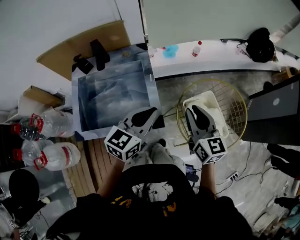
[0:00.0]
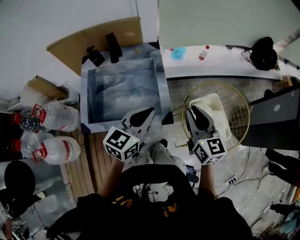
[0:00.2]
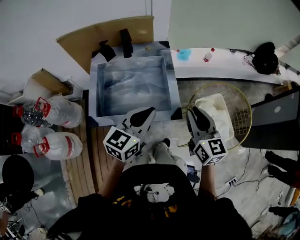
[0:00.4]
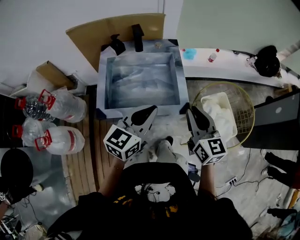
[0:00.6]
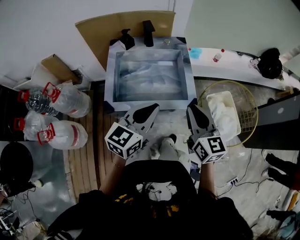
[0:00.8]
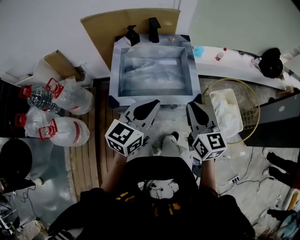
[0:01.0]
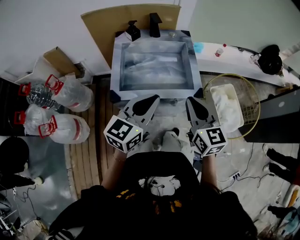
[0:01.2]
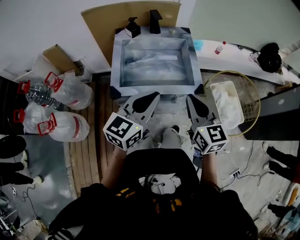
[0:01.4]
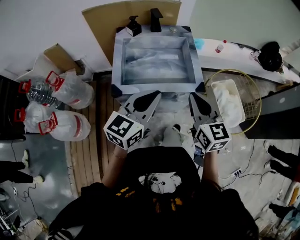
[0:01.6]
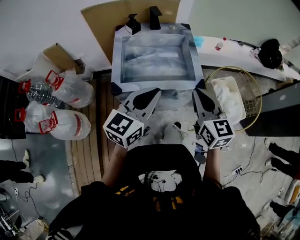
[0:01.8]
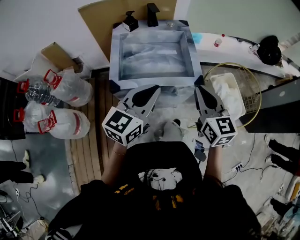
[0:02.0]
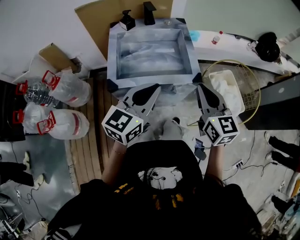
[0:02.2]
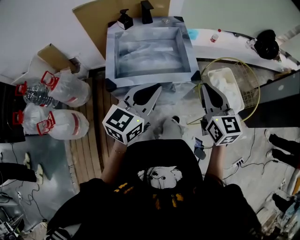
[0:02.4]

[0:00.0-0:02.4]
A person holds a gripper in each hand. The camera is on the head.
0.0 to 1.2 s: The two grippers go about 25 cm to the left and backward.
1.2 to 2.4 s: The right gripper goes roughly 5 cm to the right.

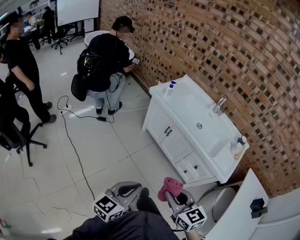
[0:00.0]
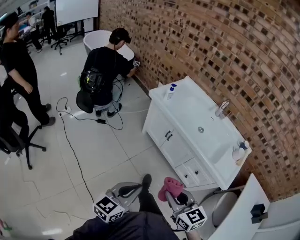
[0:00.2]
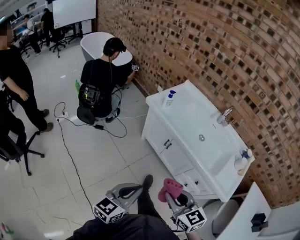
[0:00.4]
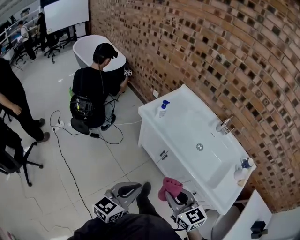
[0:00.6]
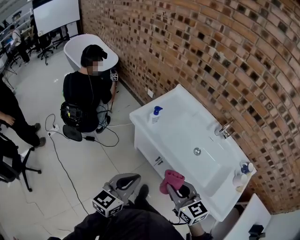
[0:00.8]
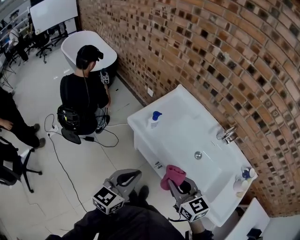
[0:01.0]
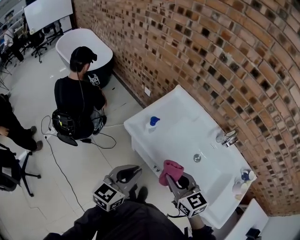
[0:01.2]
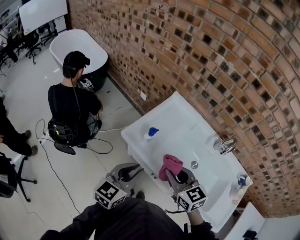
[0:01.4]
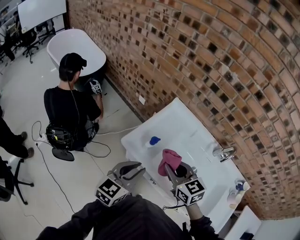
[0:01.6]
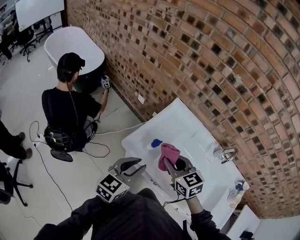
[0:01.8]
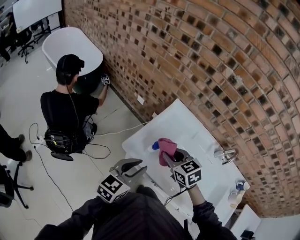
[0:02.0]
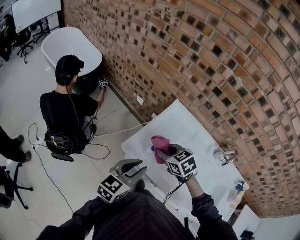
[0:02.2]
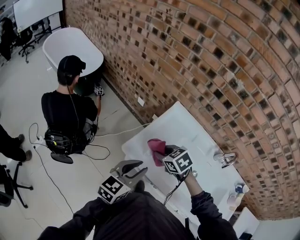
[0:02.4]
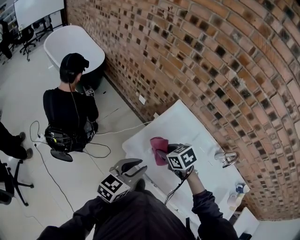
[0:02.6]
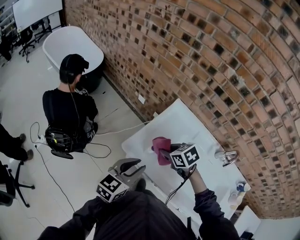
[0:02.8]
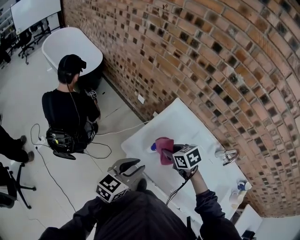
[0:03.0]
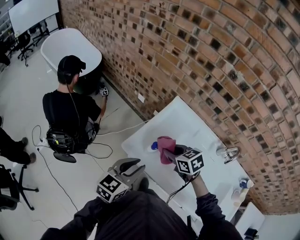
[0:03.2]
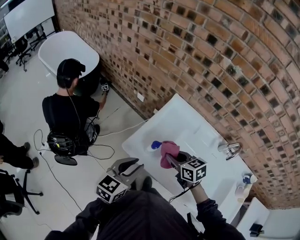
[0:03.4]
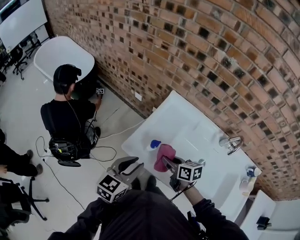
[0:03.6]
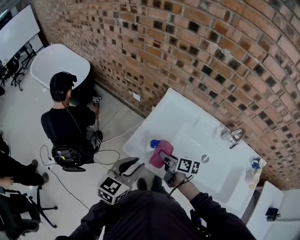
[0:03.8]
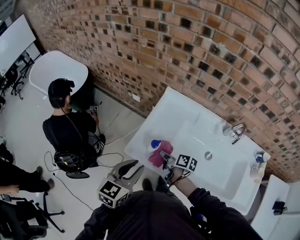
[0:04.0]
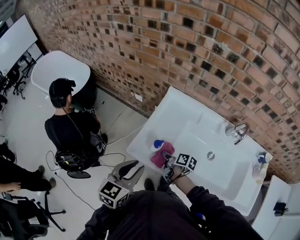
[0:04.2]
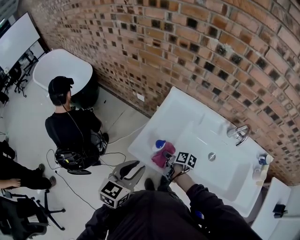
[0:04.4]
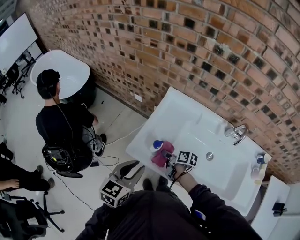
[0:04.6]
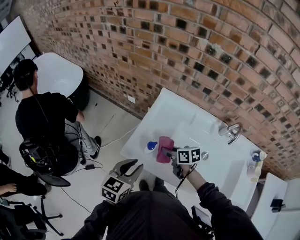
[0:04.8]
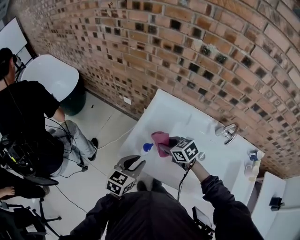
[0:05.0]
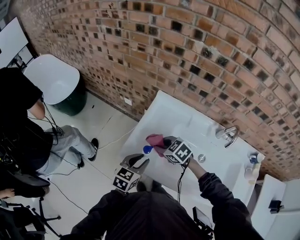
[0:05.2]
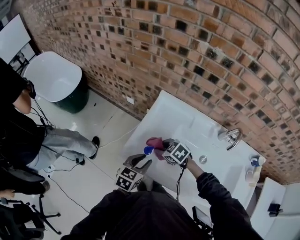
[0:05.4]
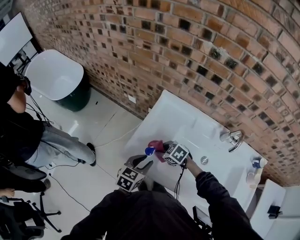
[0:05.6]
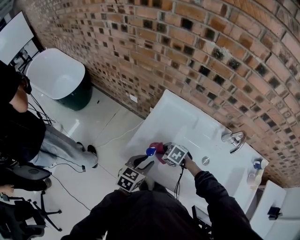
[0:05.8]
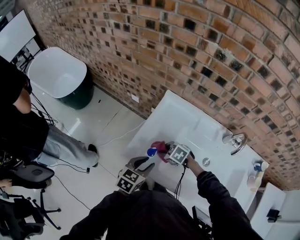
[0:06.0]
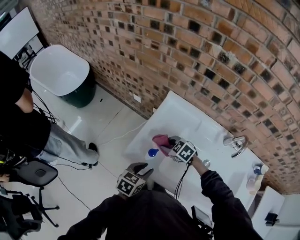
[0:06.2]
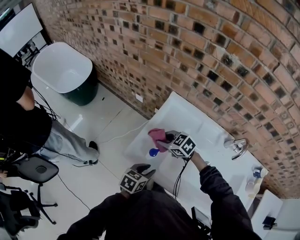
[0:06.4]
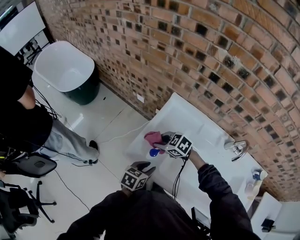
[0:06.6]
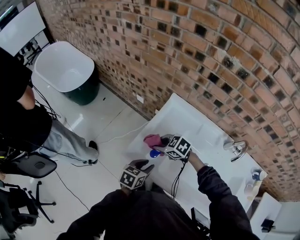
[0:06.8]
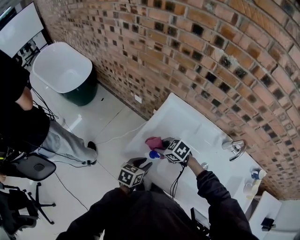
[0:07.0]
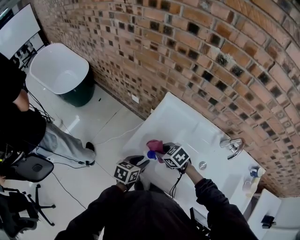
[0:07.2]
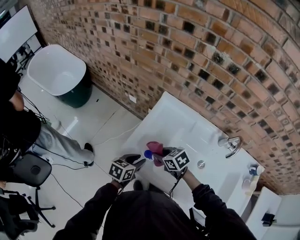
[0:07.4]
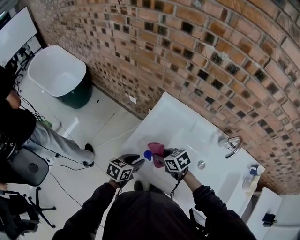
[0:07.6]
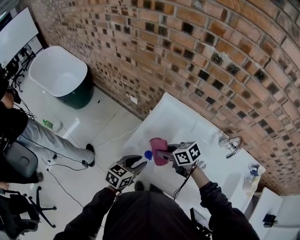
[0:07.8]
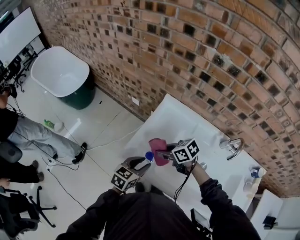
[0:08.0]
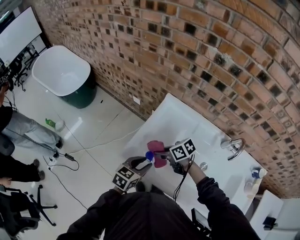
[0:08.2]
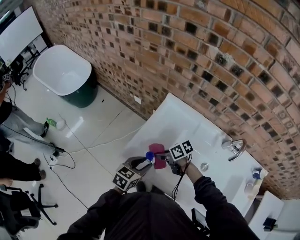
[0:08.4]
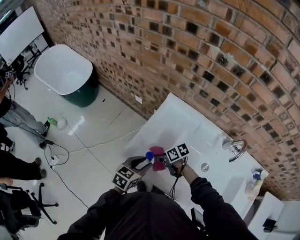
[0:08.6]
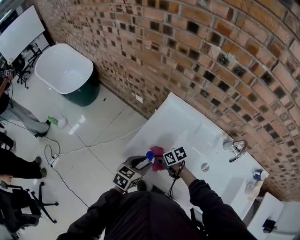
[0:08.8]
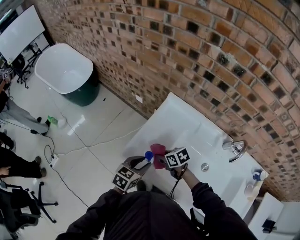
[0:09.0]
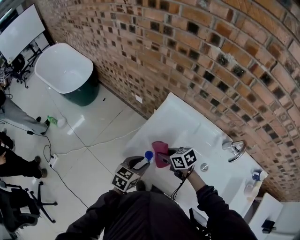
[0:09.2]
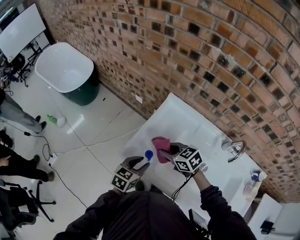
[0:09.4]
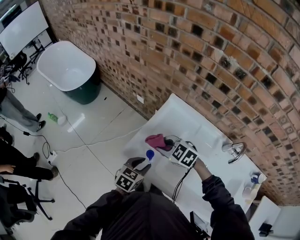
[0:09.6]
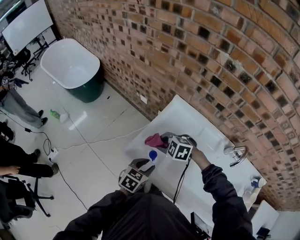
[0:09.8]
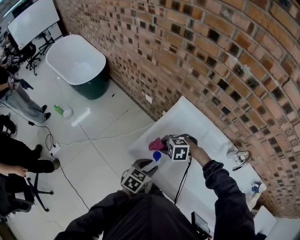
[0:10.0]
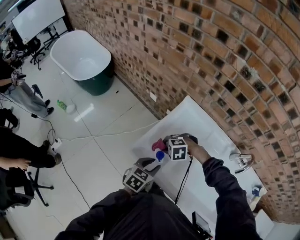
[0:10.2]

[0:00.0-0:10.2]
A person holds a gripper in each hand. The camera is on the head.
0.0 to 1.4 s: Both grippers are carried forward, approximately 60 cm.
1.4 to 3.0 s: The right gripper travels forward and downward by approximately 20 cm, and changes its angle by about 30 degrees, while the left gripper travels forward by roughly 10 cm.
3.0 to 4.4 s: The right gripper goes approximately 15 cm downward, and rolls clockwise, seen from behind, by some 70 degrees.
4.4 to 5.8 s: The left gripper heads downward, to the right and forward, covering approximately 15 cm; the right gripper moves approximately 15 cm upward and comes back, and rotates around the line of its fingers by about 80 degrees, counterclockwise from behind.
5.8 to 7.2 s: The right gripper travels upward by roughly 5 cm.
7.2 to 8.8 s: The right gripper goes roughly 10 cm downward, and rotates roughly 30 degrees.
8.8 to 10.2 s: The right gripper goes upward and returns, roughly 15 cm each way, and rotates around the line of its fingers by roughly 80 degrees, counterclockwise from behind.

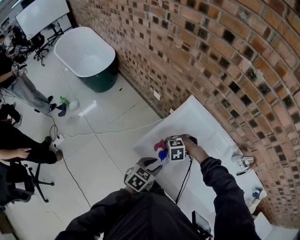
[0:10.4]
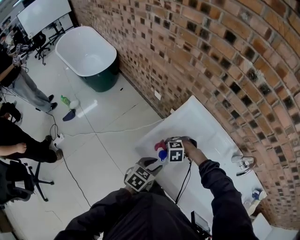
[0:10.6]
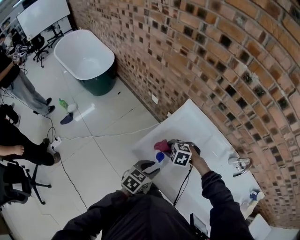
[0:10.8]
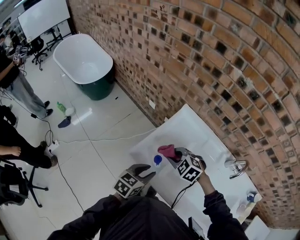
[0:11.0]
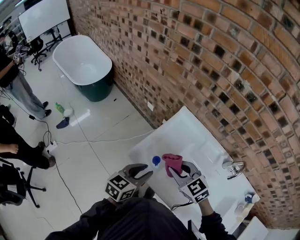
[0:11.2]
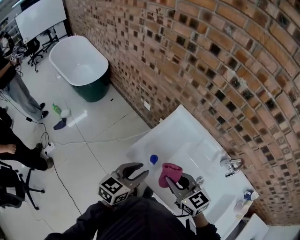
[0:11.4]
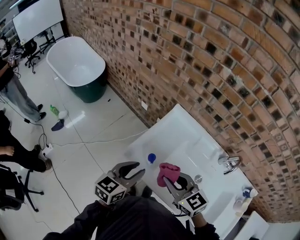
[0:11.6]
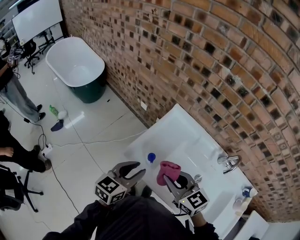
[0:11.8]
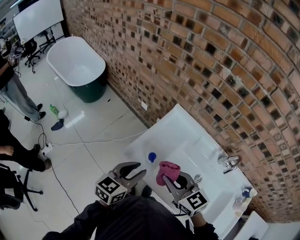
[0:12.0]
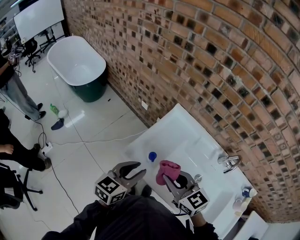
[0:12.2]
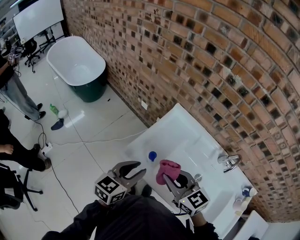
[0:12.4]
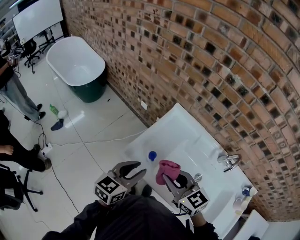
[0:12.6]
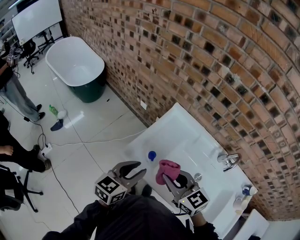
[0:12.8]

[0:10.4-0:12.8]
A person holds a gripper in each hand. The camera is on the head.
10.4 to 11.6 s: The right gripper heads upward, covering roughly 25 cm, and points its fingers approximately 50 degrees further upward. The left gripper travels upward by about 15 cm, and rotates roughly 20 degrees.
11.6 to 12.8 s: The grippers move only a little.

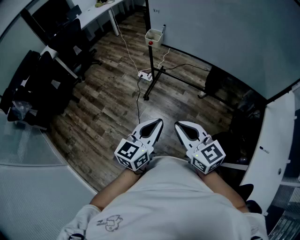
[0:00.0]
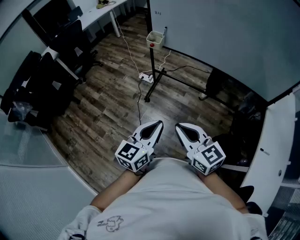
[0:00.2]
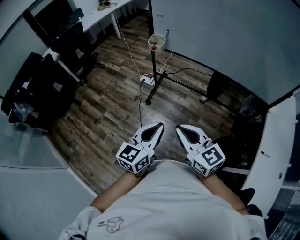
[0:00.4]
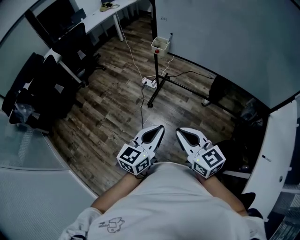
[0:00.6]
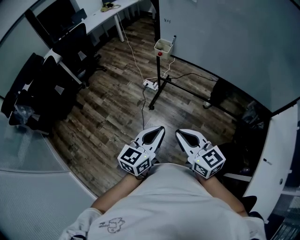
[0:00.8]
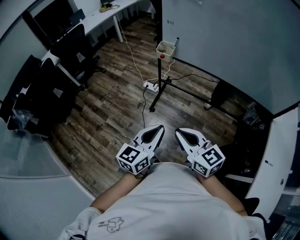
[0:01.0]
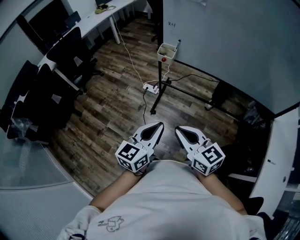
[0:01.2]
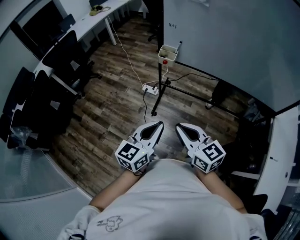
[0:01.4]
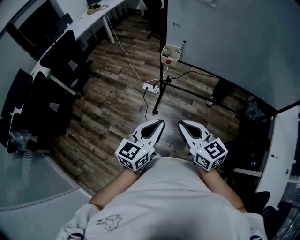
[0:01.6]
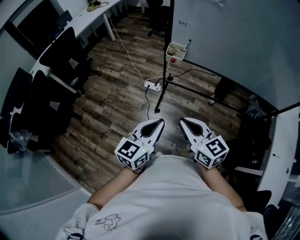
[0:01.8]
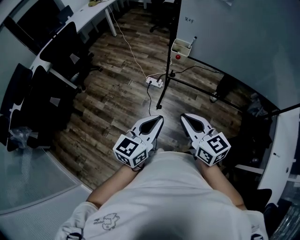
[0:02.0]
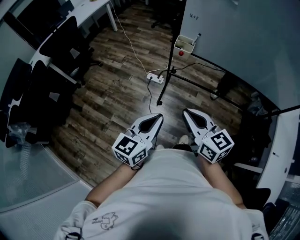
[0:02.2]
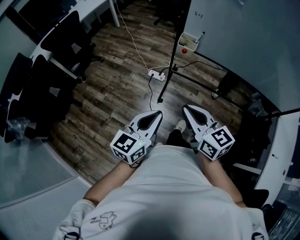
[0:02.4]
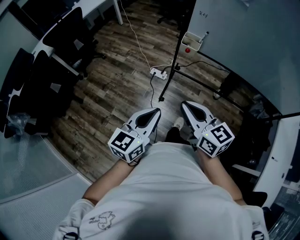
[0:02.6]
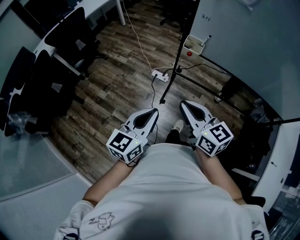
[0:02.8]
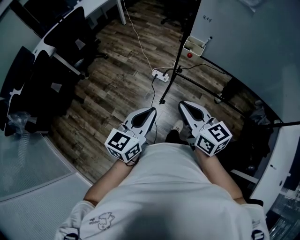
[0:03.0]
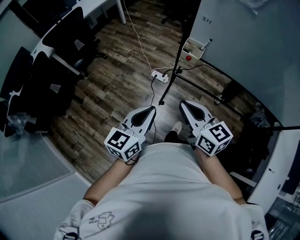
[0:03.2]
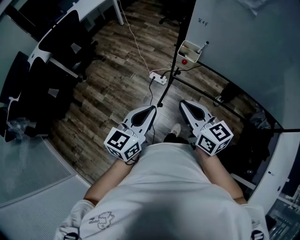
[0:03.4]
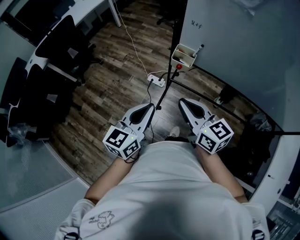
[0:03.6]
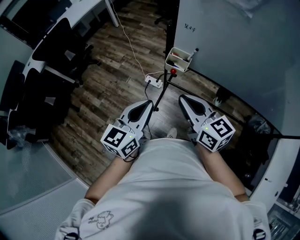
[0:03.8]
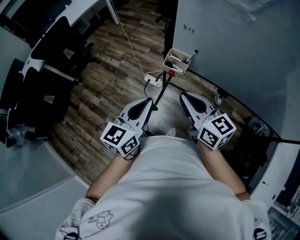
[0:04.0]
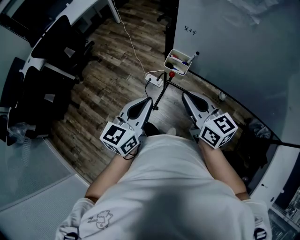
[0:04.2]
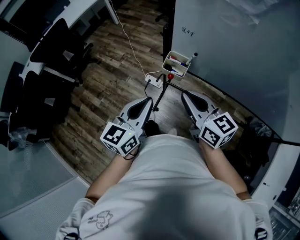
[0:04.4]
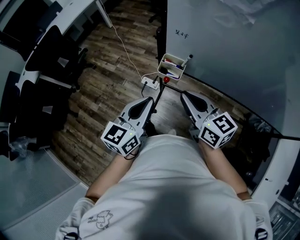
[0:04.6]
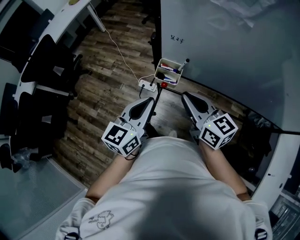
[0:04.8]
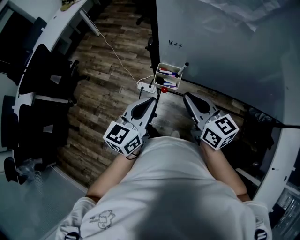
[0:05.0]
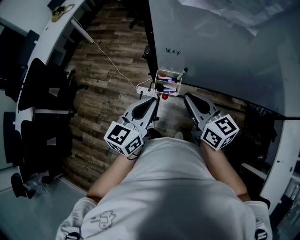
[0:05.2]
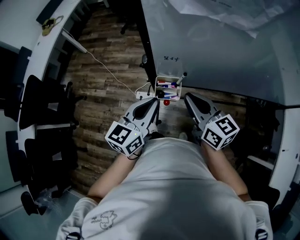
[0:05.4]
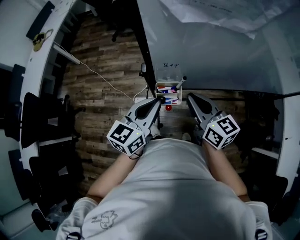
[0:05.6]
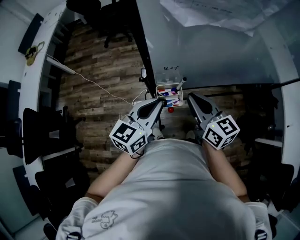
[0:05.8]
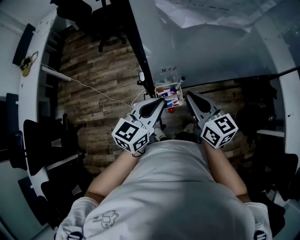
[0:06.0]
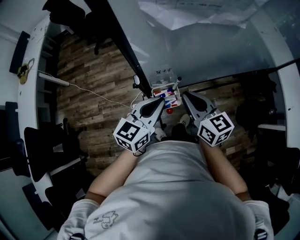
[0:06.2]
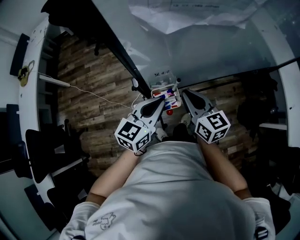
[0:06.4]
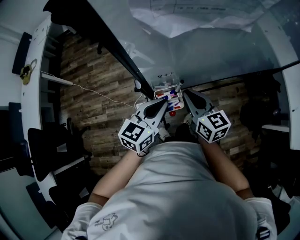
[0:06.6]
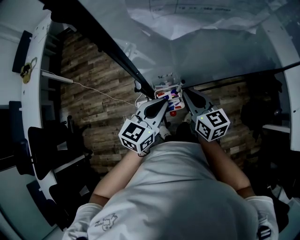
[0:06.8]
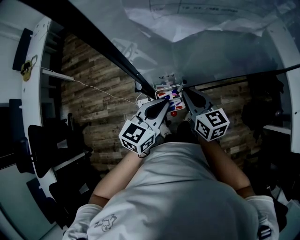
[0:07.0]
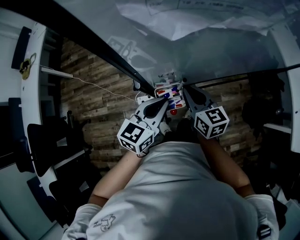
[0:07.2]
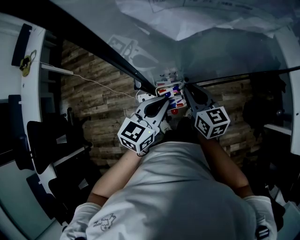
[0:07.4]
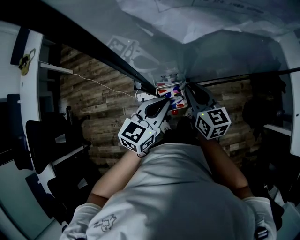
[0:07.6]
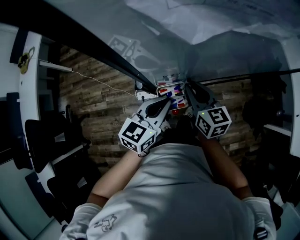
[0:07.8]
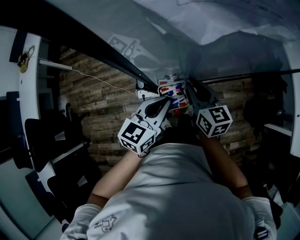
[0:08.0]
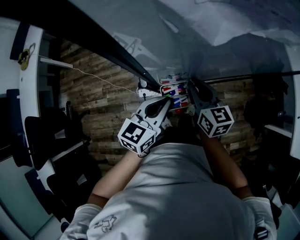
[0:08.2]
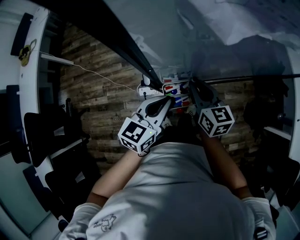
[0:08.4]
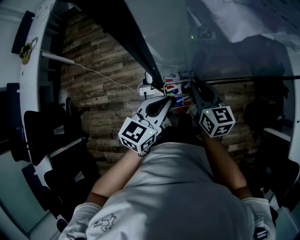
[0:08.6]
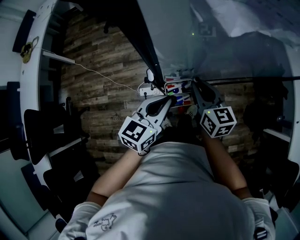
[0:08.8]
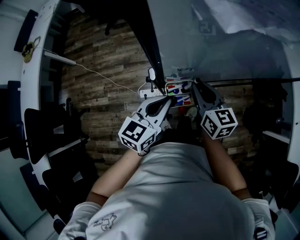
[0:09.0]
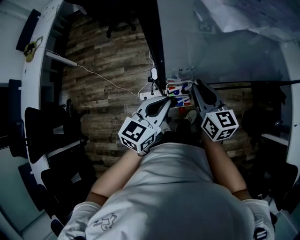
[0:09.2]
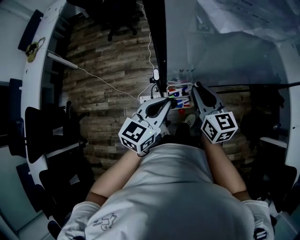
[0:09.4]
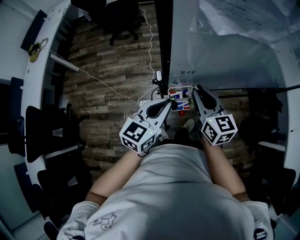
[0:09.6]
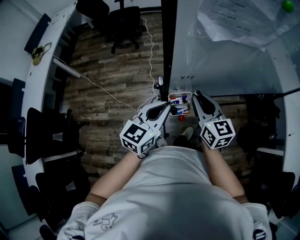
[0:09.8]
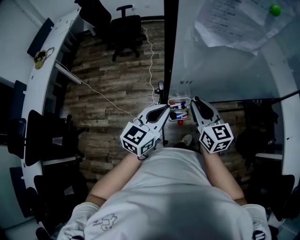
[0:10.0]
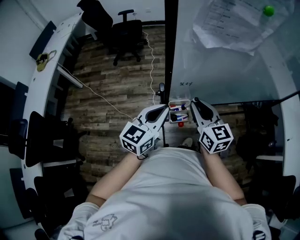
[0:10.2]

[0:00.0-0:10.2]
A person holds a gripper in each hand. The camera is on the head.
0.0 to 1.4 s: The grippers both shift forward and to the left by approximately 25 cm.
1.4 to 3.0 s: The left gripper moves to the left and forward, roughly 15 cm, while the right gripper goes about 15 cm forward and to the left.
3.0 to 4.4 s: The two grippers go about 25 cm forward and to the right.
4.4 to 5.8 s: The right gripper moves roughly 15 cm, and changes its angle by about 40 degrees. Meanwhile the left gripper ends up some 20 cm from where it was, and turns by approximately 40 degrees.
5.8 to 7.2 s: The right gripper moves downward and forward, some 10 cm. The left gripper ends up some 5 cm from where it was.
7.2 to 8.8 s: The grippers stay close to where they were, moving slightly.
8.8 to 10.2 s: The right gripper goes about 10 cm upward and backward. The left gripper travels upward by about 10 cm.
